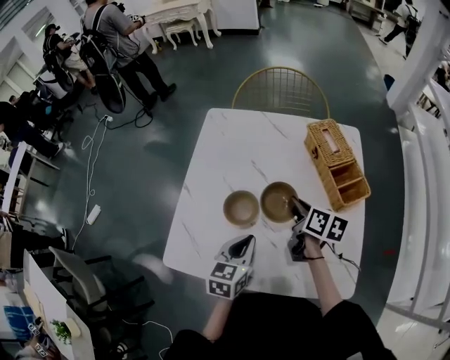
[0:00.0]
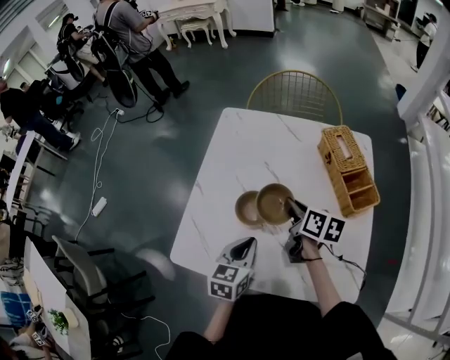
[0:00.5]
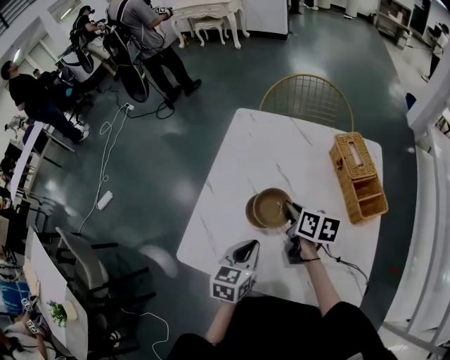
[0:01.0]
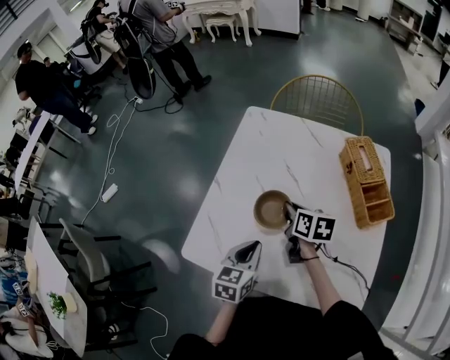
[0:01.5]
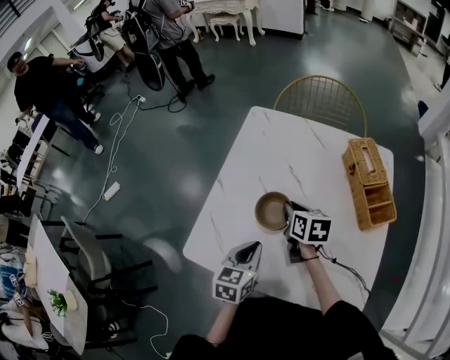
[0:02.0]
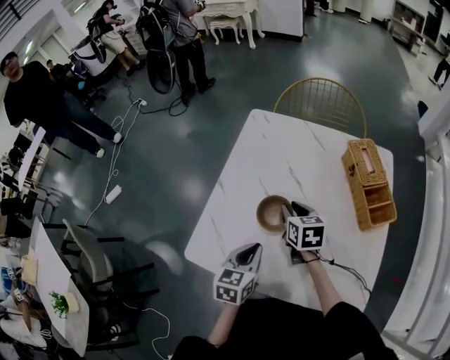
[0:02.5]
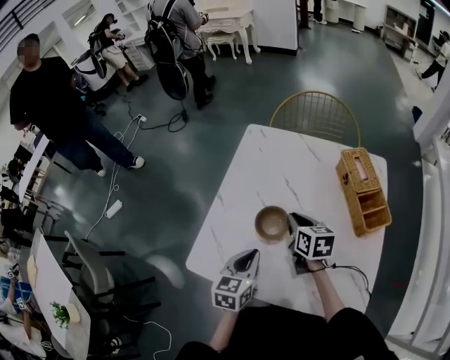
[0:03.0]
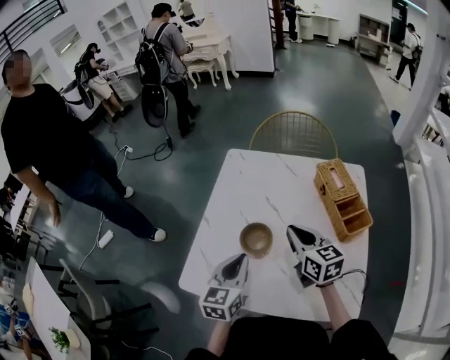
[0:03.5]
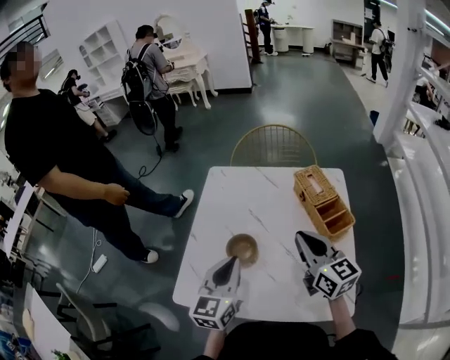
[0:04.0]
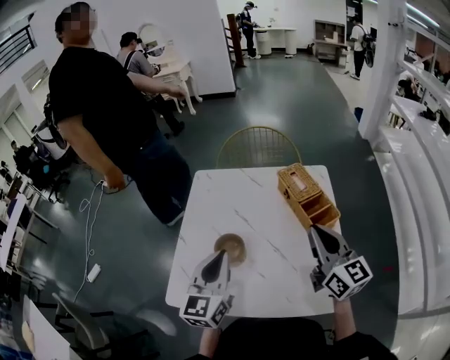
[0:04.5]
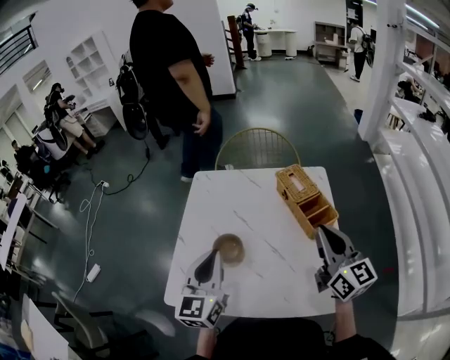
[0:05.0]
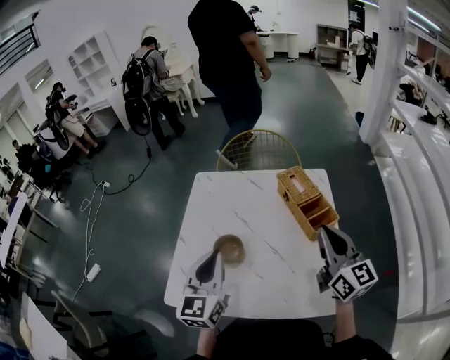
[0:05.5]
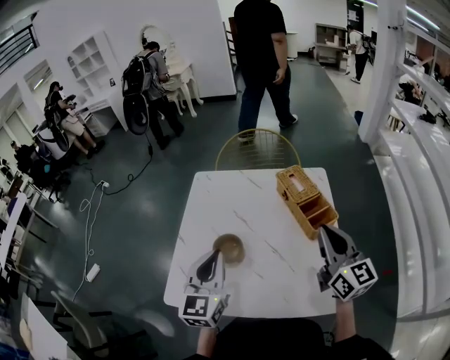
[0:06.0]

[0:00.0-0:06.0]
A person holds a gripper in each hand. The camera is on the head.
0:00.0 to 0:02.0: The left gripper travels to the left by about 5 cm, while the right gripper moves to the left, some 10 cm, and changes its angle by about 30 degrees.
0:02.0 to 0:04.0: The right gripper moves upward, to the right and backward, about 25 cm, and tips its fingers upward by approximately 40 degrees. The left gripper goes about 15 cm upward, and rotates approximately 30 degrees.
0:04.0 to 0:06.0: The right gripper shifts some 10 cm to the right and upward.

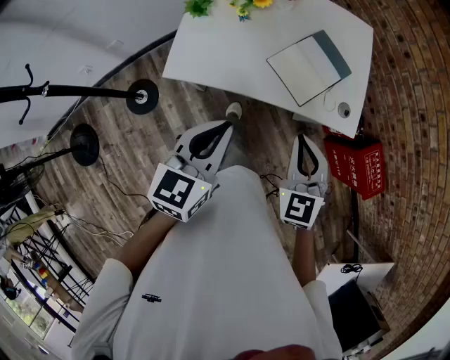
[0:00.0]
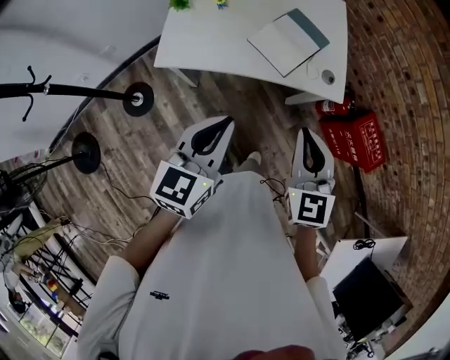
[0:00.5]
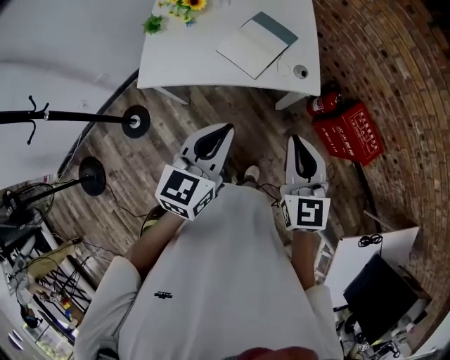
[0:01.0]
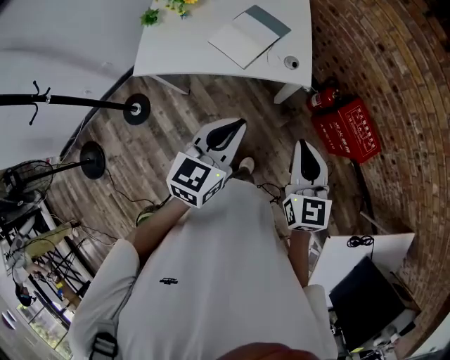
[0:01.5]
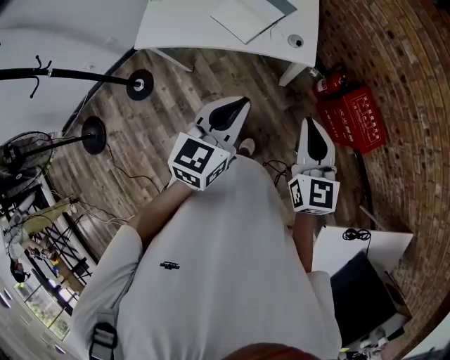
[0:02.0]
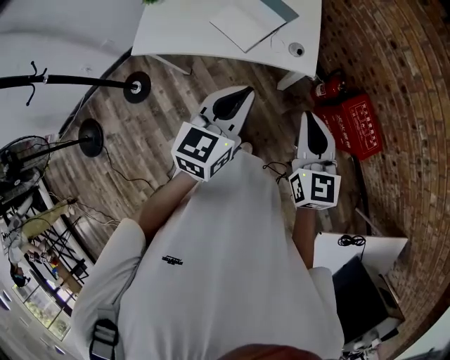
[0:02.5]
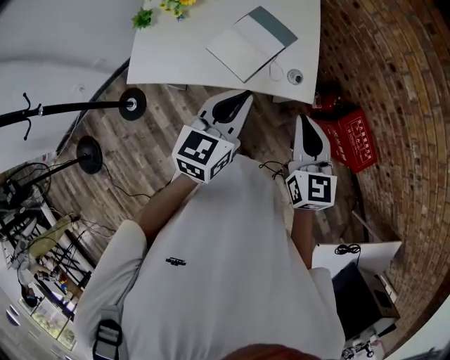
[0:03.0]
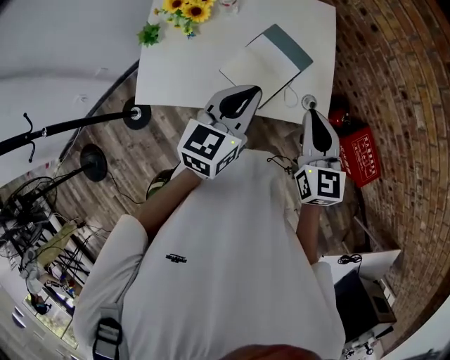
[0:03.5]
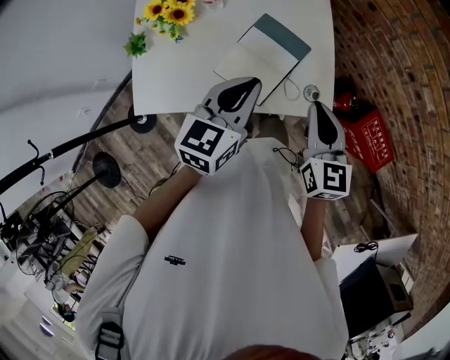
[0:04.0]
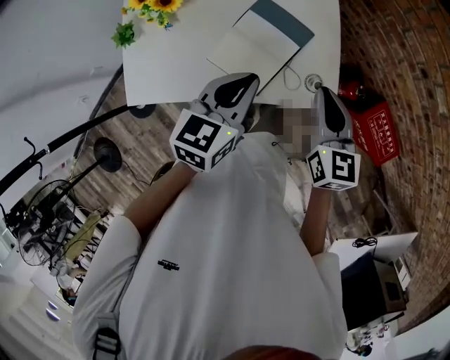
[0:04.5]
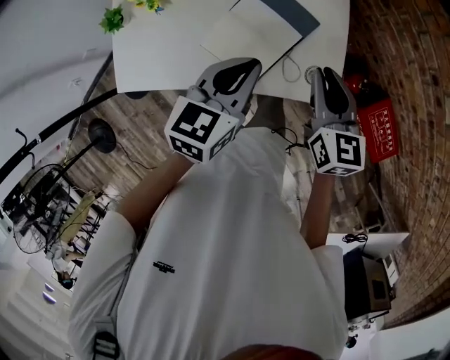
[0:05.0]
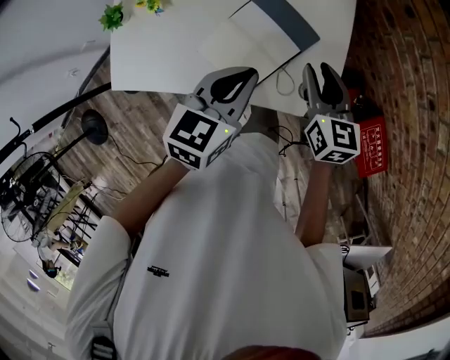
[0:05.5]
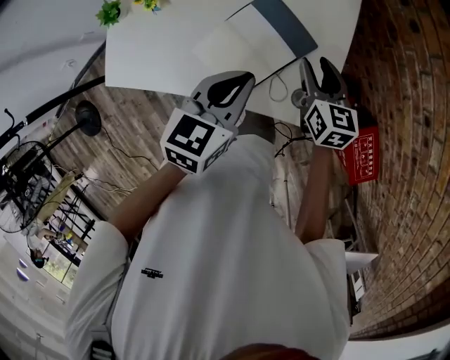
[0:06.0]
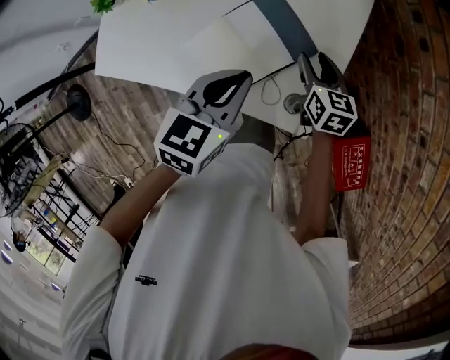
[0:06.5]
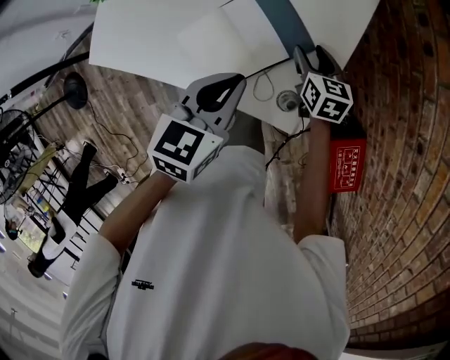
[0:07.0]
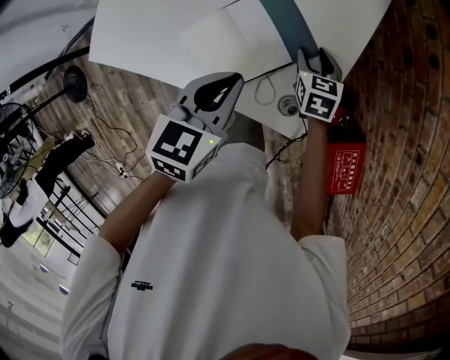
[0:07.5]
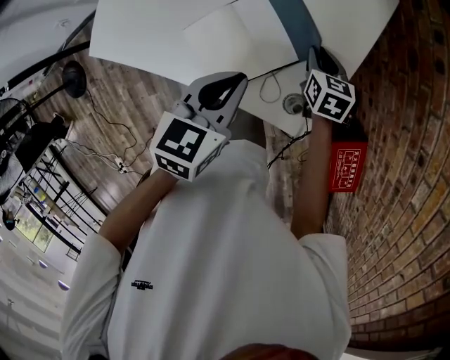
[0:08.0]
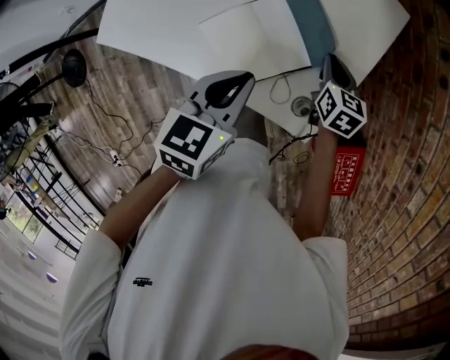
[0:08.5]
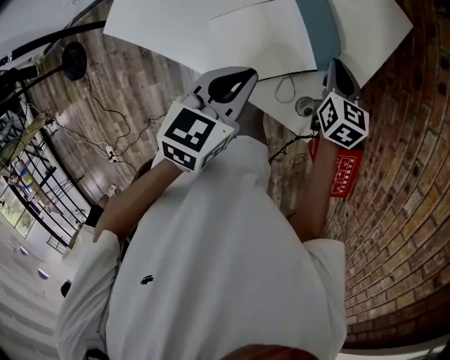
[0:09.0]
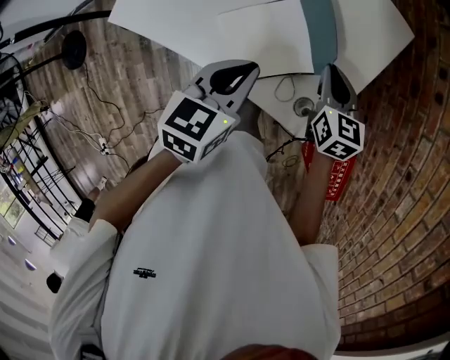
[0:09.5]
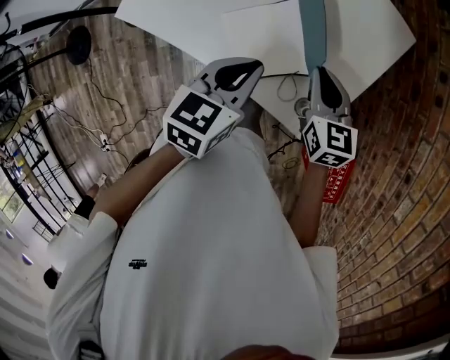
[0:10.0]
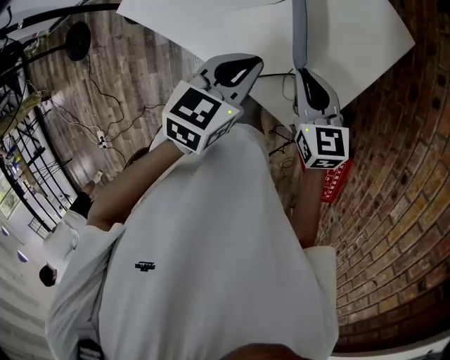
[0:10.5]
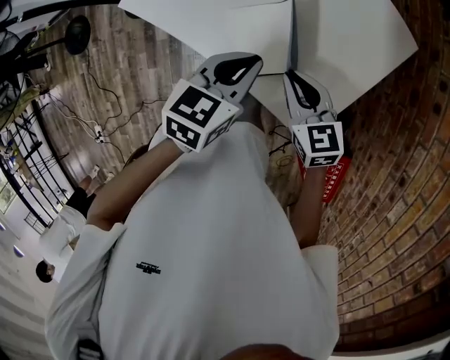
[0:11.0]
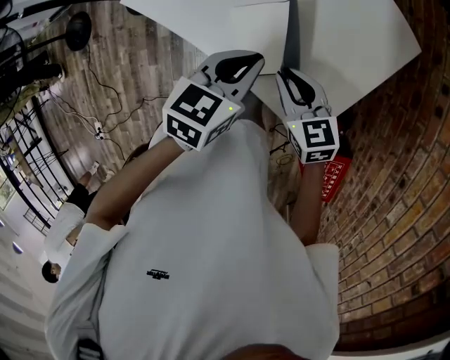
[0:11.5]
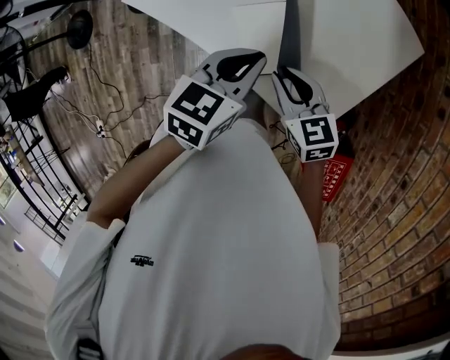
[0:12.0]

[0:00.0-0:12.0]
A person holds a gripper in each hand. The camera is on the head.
0:00.0 to 0:02.0: The right gripper travels to the right and backward by some 30 cm, and rotates some 30 degrees; the left gripper moves to the right, about 30 cm.
0:02.0 to 0:04.0: The left gripper heads forward, covering roughly 35 cm; the right gripper heads forward and to the left, covering some 35 cm.
0:04.0 to 0:06.0: The right gripper travels downward and forward by roughly 25 cm, turns by some 20 degrees, and opens its fingers, while the left gripper shifts roughly 10 cm downward and forward.
0:06.0 to 0:08.0: The right gripper is displaced downward by approximately 15 cm, and closes its fingers.
0:08.0 to 0:10.0: The right gripper goes some 15 cm upward, to the left and backward, and swivels some 20 degrees.
0:10.0 to 0:12.0: The right gripper heads to the left, covering about 10 cm, and swivels approximately 30 degrees.

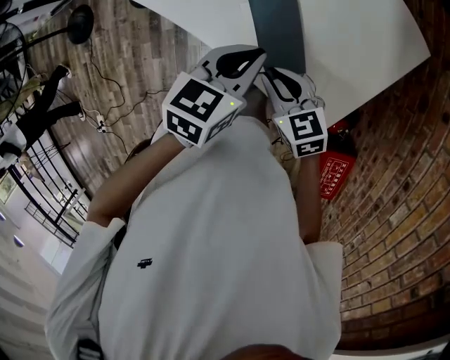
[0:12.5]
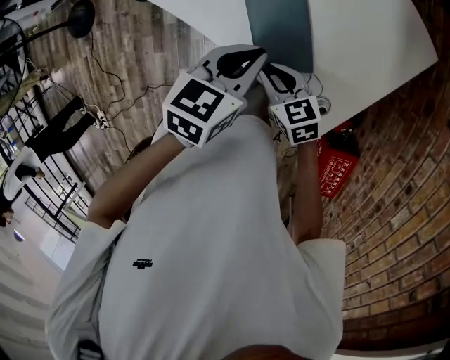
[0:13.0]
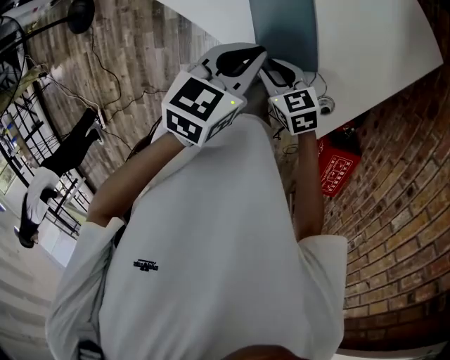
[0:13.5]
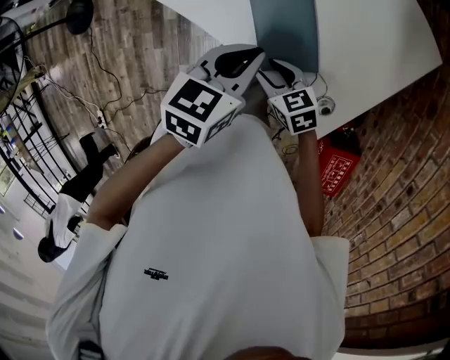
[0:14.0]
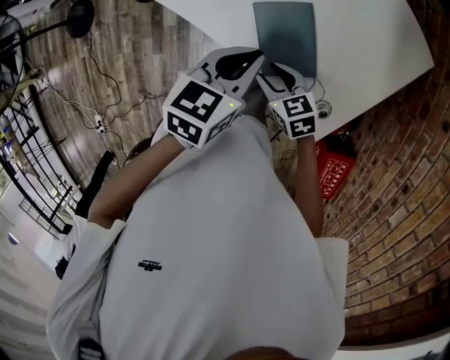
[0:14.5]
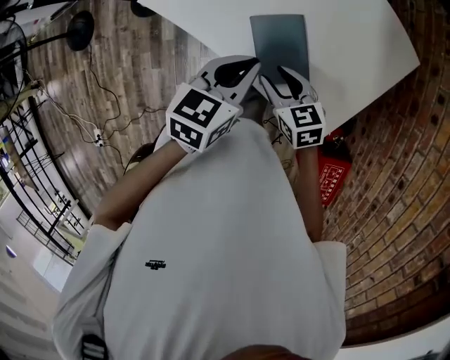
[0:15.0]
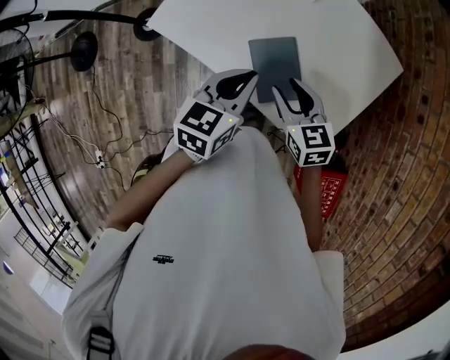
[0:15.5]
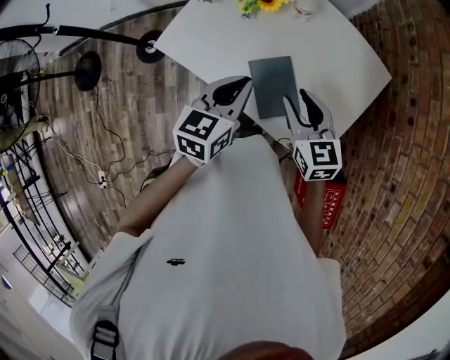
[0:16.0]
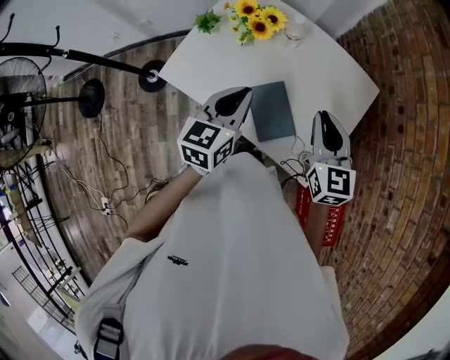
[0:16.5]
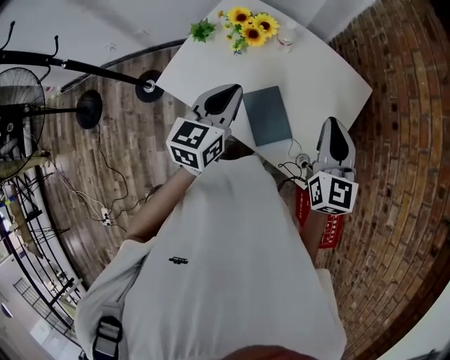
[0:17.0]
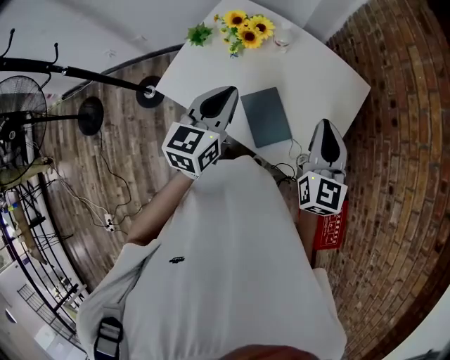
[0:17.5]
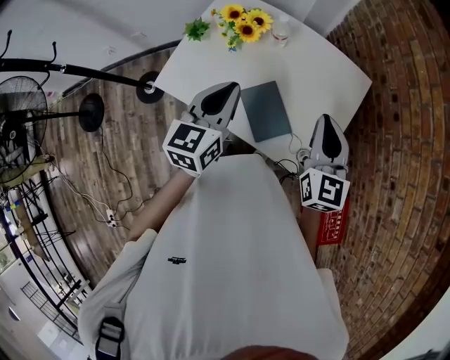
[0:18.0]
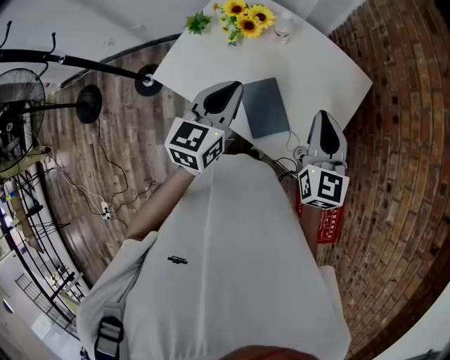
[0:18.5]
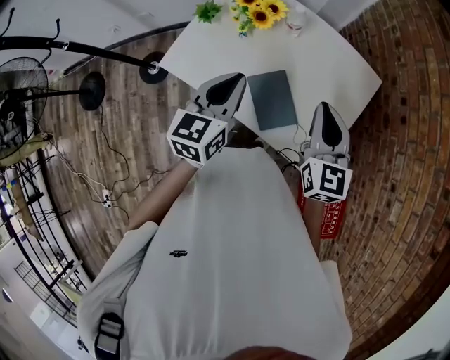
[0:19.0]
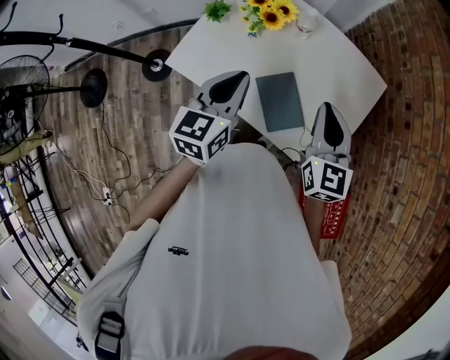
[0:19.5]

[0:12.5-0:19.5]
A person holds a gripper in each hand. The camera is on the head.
0:12.5 to 0:14.5: The right gripper travels downward by about 5 cm, and opens.
0:14.5 to 0:16.0: The left gripper shifts approximately 10 cm upward. Meanwhile the right gripper moves upward, approximately 20 cm, and rotates about 30 degrees.
0:16.0 to 0:17.5: The right gripper is displaced upward and to the right by about 15 cm, swivels some 30 degrees, and closes. Meanwhile the left gripper is displaced upward by some 5 cm.
0:17.5 to 0:19.5: The right gripper shifts approximately 5 cm to the left.

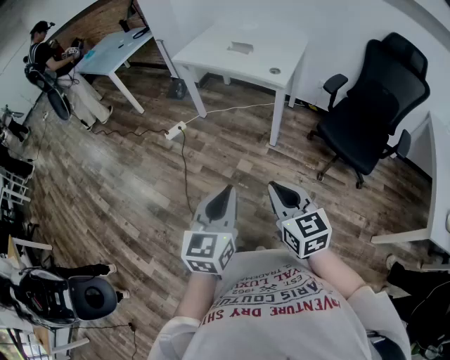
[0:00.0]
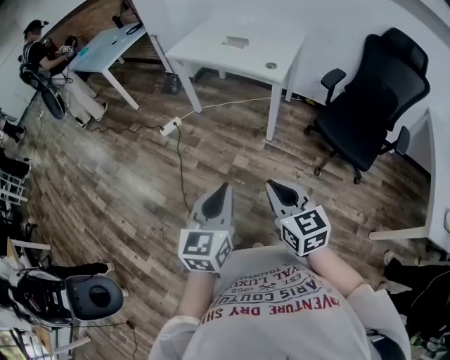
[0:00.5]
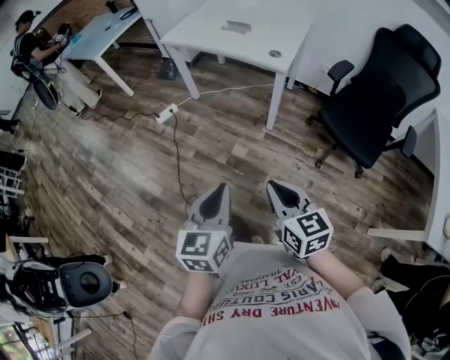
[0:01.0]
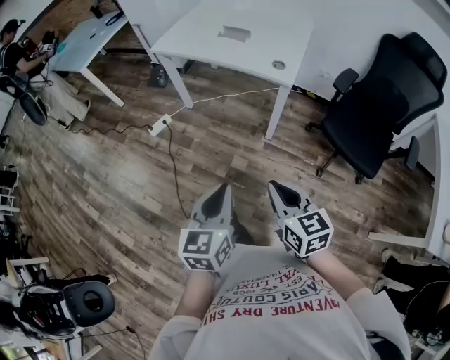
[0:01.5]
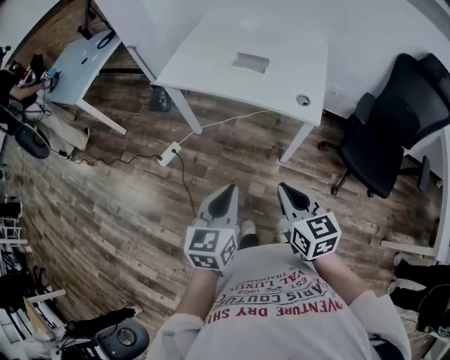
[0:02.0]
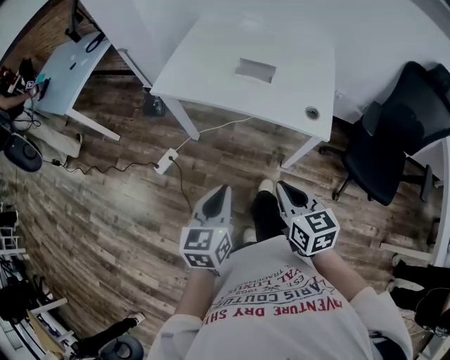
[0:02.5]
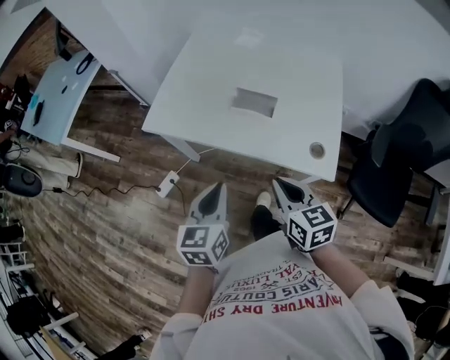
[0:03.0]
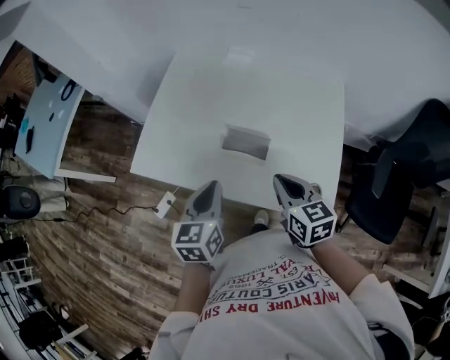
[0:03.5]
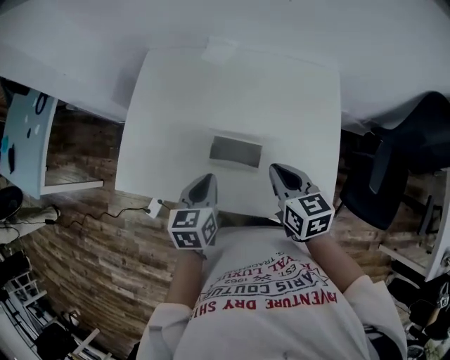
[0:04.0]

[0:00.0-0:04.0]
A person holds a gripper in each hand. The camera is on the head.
0:00.0 to 0:02.0: Both grippers travel together forward, about 40 cm.
0:02.0 to 0:04.0: The pair of grippers is taken forward, some 50 cm.
